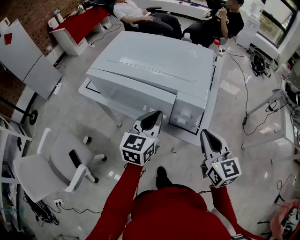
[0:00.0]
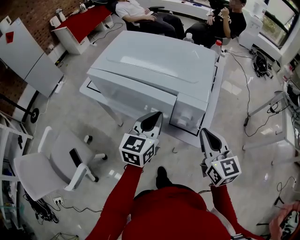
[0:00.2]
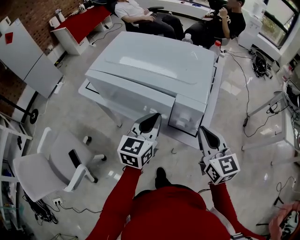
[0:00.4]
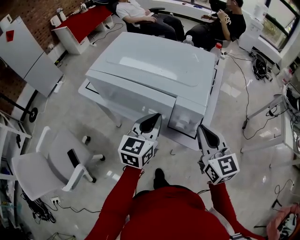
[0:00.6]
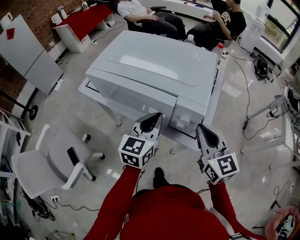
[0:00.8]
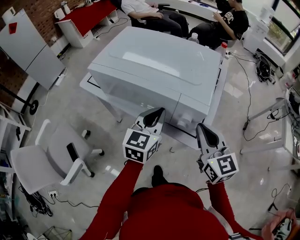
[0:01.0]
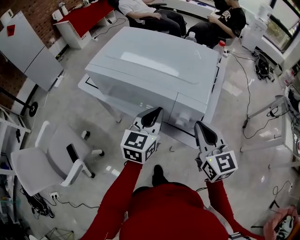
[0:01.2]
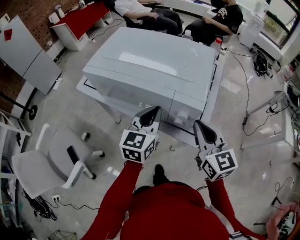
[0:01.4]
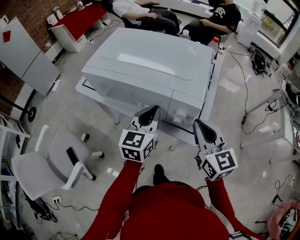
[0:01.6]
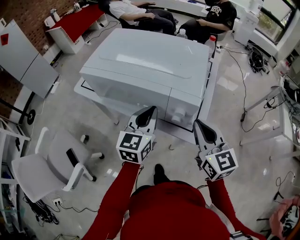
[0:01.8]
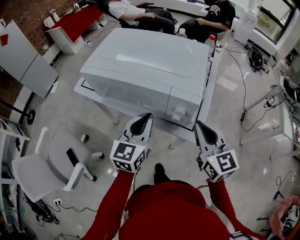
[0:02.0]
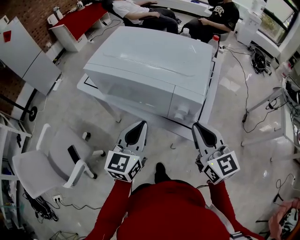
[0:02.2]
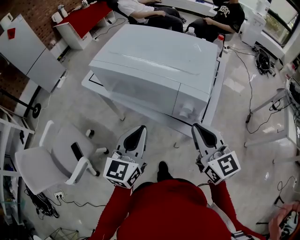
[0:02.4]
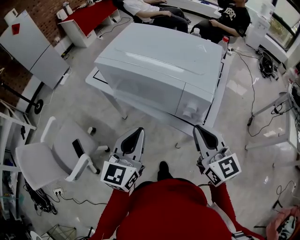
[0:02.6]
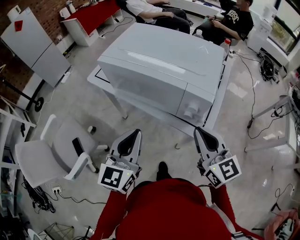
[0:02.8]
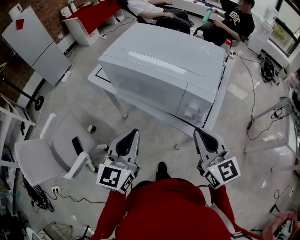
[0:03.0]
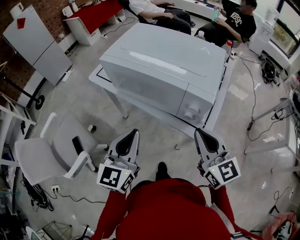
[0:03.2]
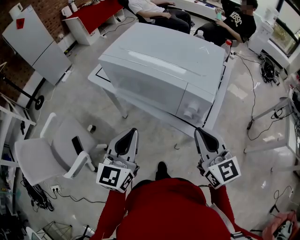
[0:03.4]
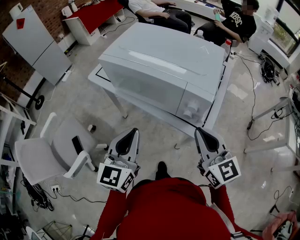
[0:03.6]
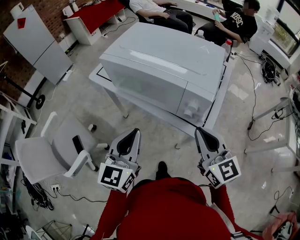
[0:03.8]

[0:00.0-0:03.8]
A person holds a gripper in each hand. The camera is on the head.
0:00.0 to 0:01.2: The grippers make only small movements.
0:01.2 to 0:02.6: The right gripper shifts about 5 cm backward, while the left gripper goes roughly 15 cm backward and to the left.
0:02.6 to 0:03.8: The grippers move only a little.

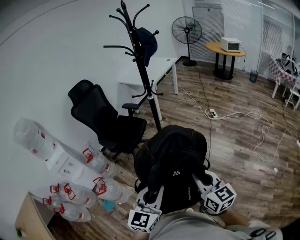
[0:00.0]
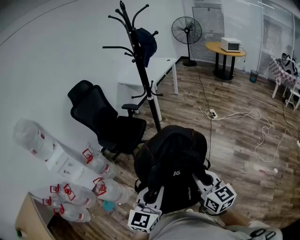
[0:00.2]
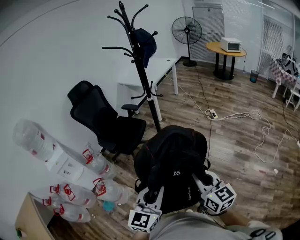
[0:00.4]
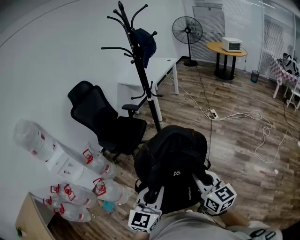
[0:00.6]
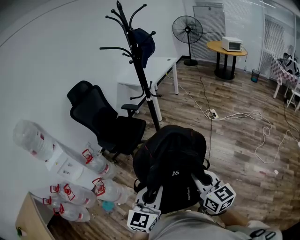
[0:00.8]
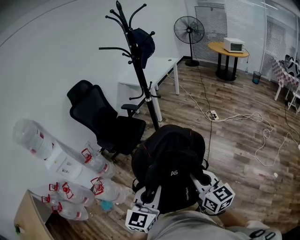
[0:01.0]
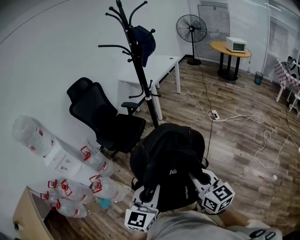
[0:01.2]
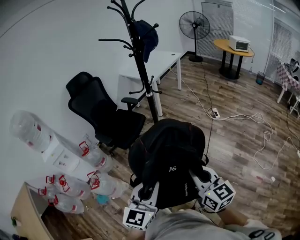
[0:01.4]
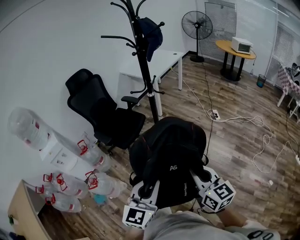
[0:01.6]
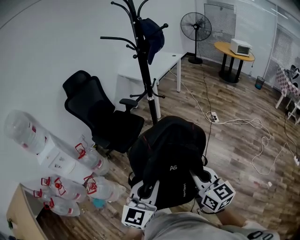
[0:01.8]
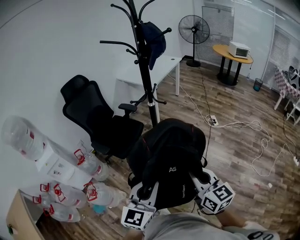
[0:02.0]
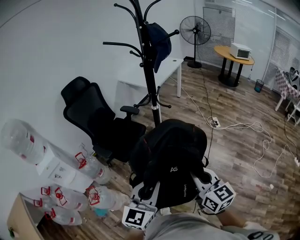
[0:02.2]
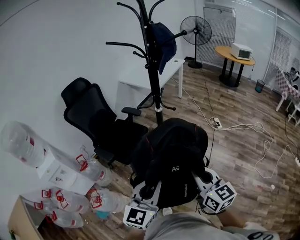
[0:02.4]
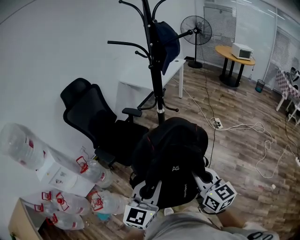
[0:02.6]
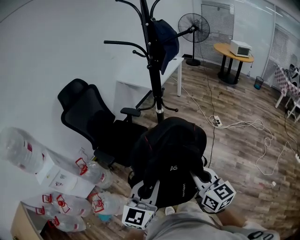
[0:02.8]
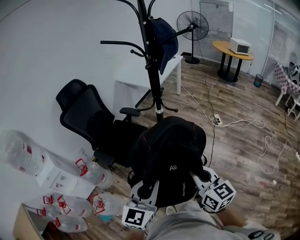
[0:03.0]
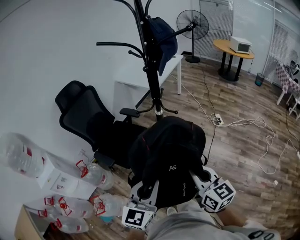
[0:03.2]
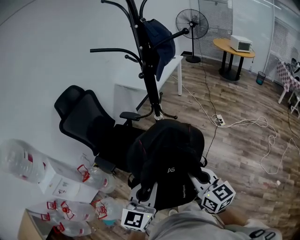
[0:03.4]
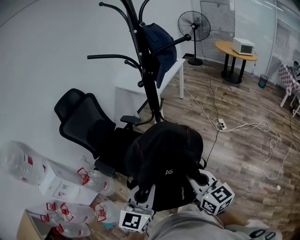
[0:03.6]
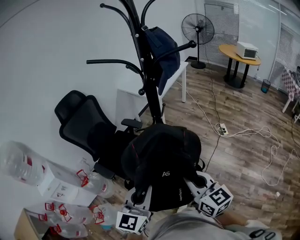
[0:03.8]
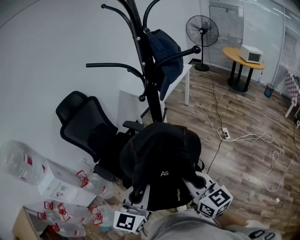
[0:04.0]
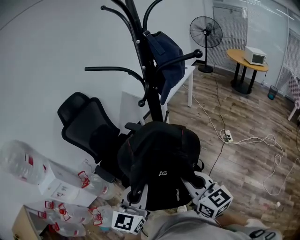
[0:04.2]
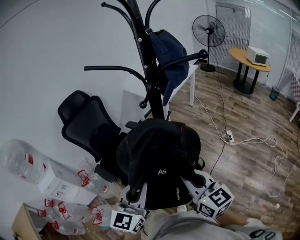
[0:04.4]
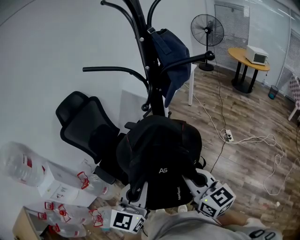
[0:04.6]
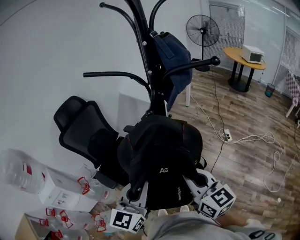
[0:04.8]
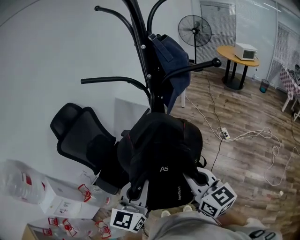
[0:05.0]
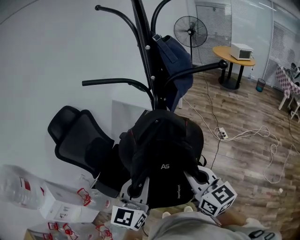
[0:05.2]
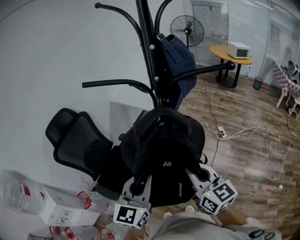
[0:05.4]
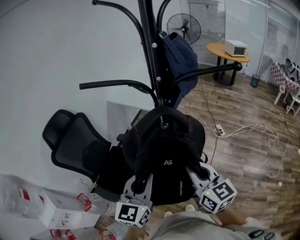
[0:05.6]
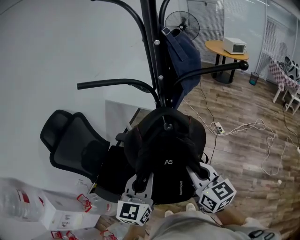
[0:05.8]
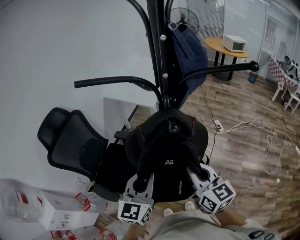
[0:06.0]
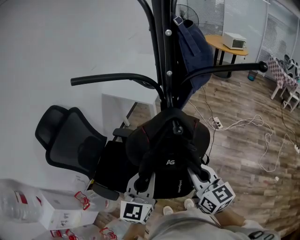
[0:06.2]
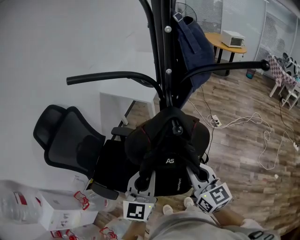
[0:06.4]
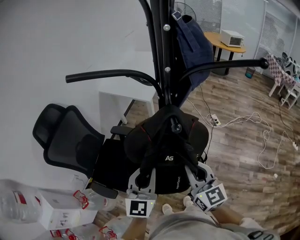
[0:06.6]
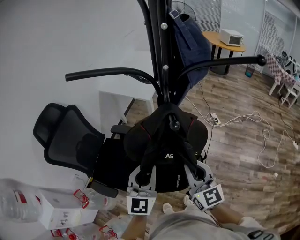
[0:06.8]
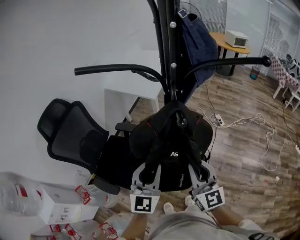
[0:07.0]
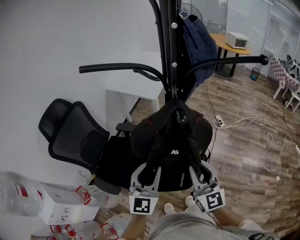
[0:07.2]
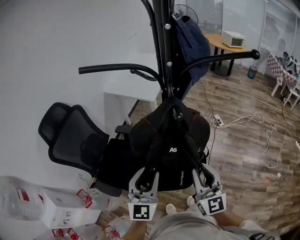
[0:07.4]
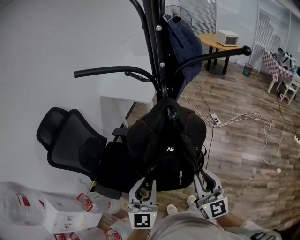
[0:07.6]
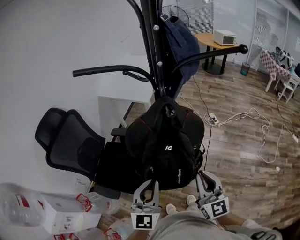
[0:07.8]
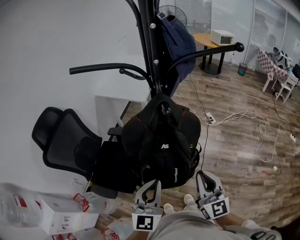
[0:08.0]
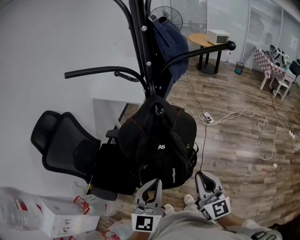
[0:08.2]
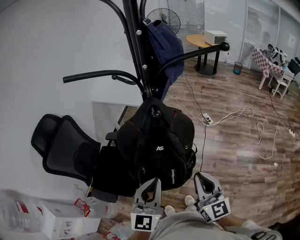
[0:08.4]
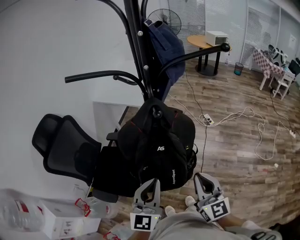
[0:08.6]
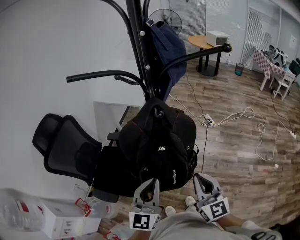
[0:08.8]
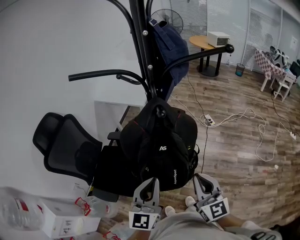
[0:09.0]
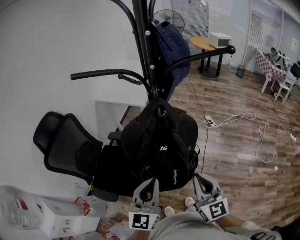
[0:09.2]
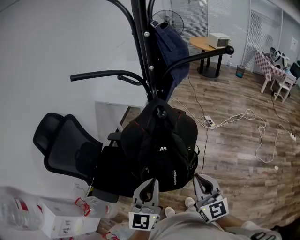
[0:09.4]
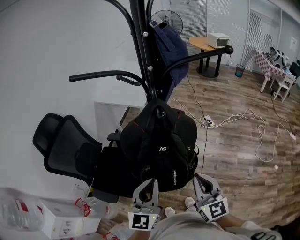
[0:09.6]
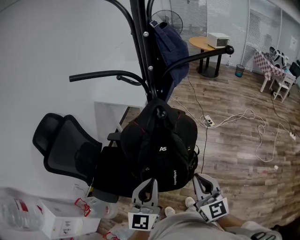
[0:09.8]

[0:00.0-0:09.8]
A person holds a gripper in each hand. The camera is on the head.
0:00.0 to 0:01.4: Both grippers travel together forward, approximately 5 cm.
0:01.4 to 0:02.8: The two grippers go some 20 cm forward and to the left.
0:02.8 to 0:04.2: Both grippers move forward, about 15 cm.
0:04.2 to 0:05.6: Both grippers move forward, roughly 15 cm.
0:05.6 to 0:07.0: Both grippers move downward, approximately 5 cm.
0:07.0 to 0:08.4: The left gripper heads backward, covering about 10 cm, while the right gripper heads backward and to the right, covering roughly 10 cm.
0:08.4 to 0:09.8: The grippers move only a little.

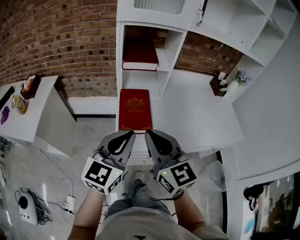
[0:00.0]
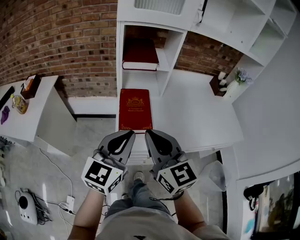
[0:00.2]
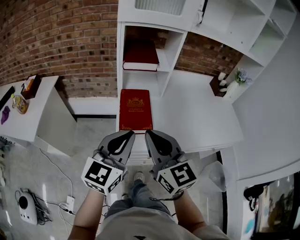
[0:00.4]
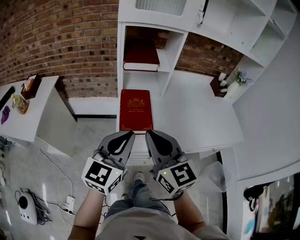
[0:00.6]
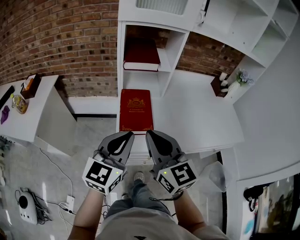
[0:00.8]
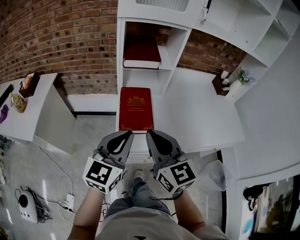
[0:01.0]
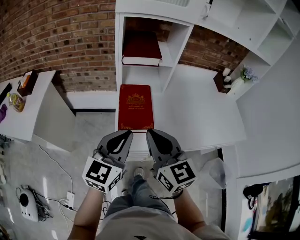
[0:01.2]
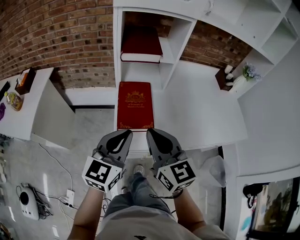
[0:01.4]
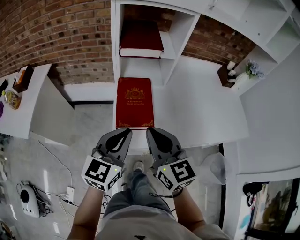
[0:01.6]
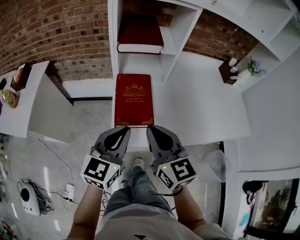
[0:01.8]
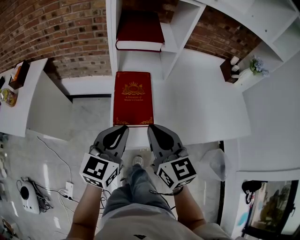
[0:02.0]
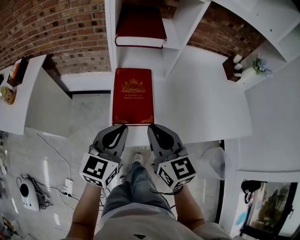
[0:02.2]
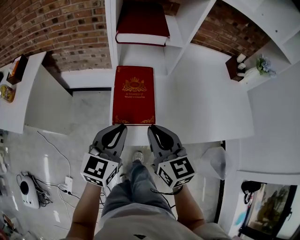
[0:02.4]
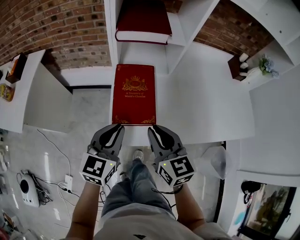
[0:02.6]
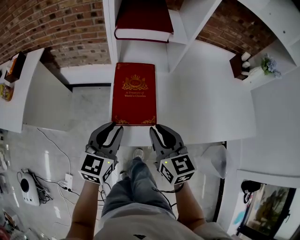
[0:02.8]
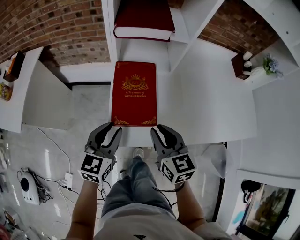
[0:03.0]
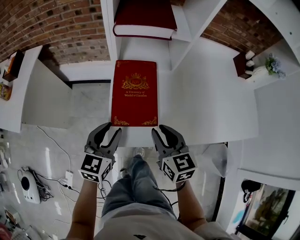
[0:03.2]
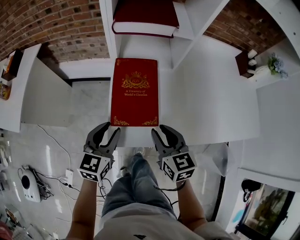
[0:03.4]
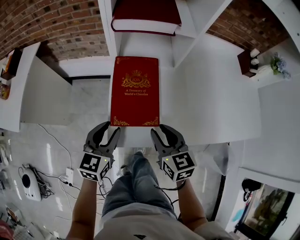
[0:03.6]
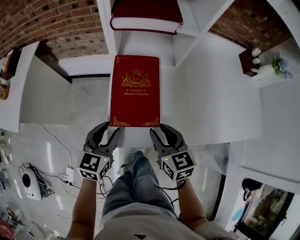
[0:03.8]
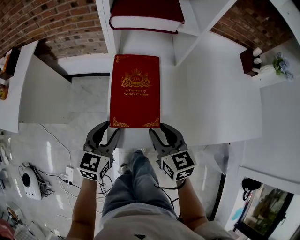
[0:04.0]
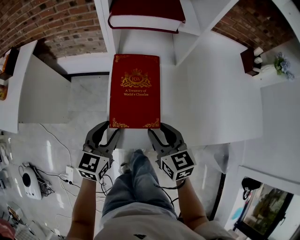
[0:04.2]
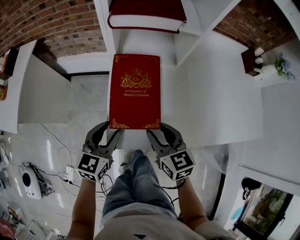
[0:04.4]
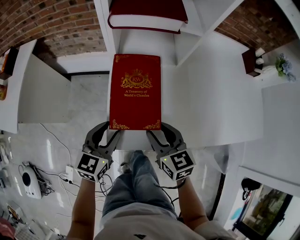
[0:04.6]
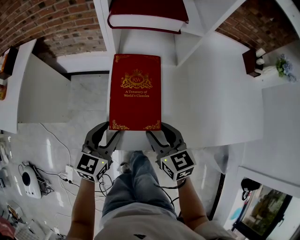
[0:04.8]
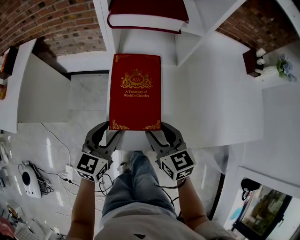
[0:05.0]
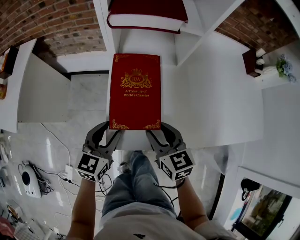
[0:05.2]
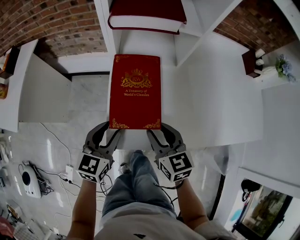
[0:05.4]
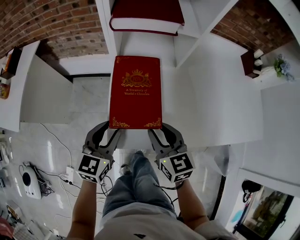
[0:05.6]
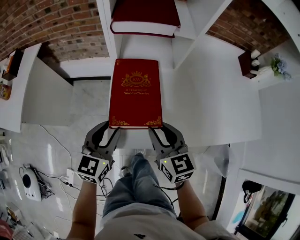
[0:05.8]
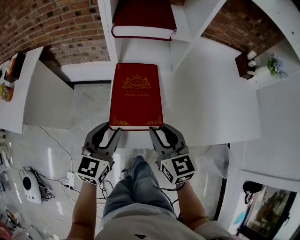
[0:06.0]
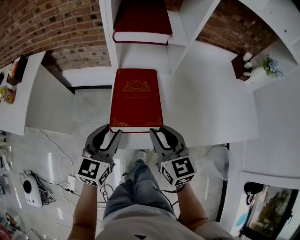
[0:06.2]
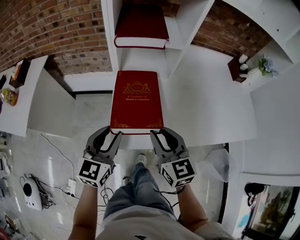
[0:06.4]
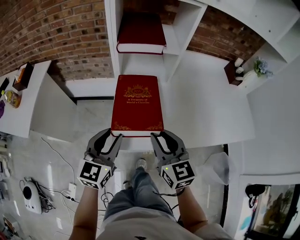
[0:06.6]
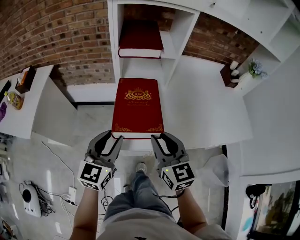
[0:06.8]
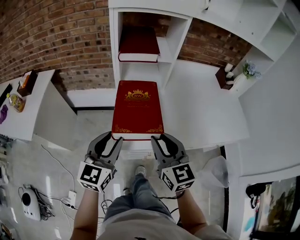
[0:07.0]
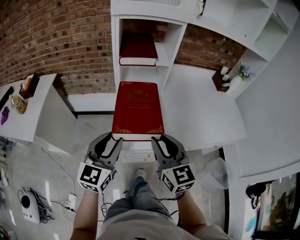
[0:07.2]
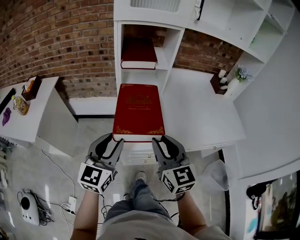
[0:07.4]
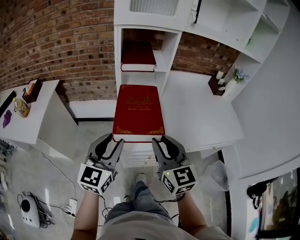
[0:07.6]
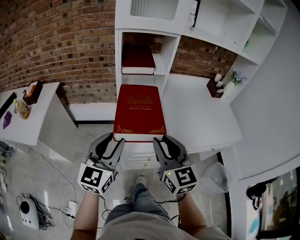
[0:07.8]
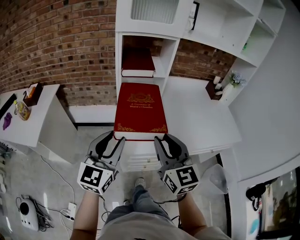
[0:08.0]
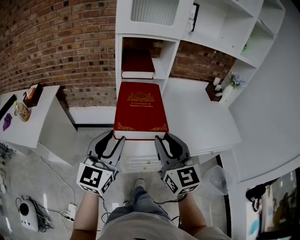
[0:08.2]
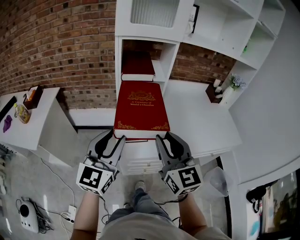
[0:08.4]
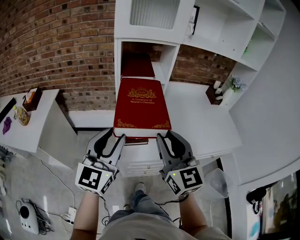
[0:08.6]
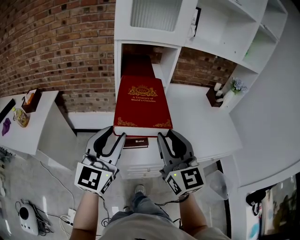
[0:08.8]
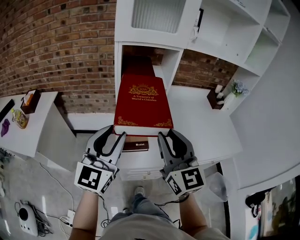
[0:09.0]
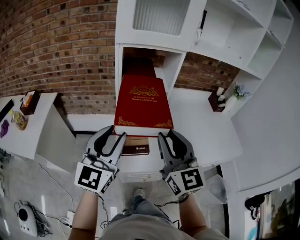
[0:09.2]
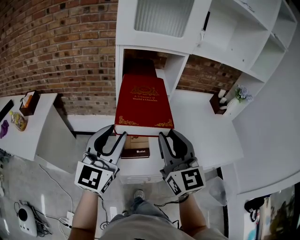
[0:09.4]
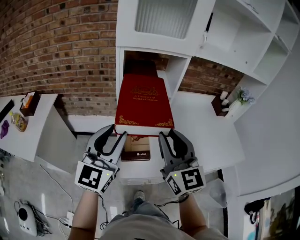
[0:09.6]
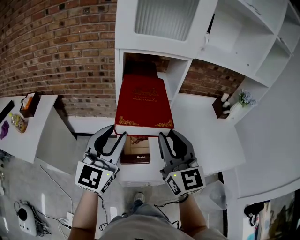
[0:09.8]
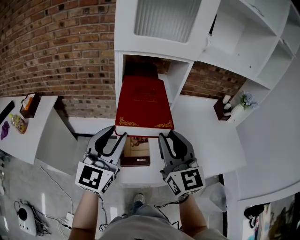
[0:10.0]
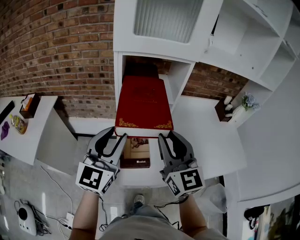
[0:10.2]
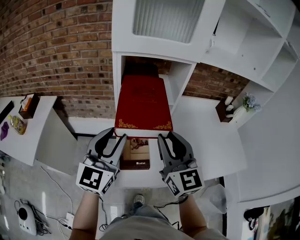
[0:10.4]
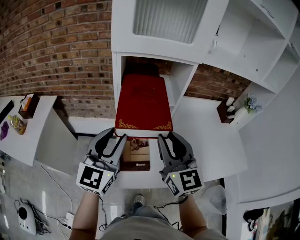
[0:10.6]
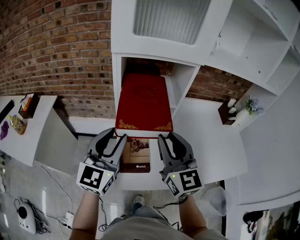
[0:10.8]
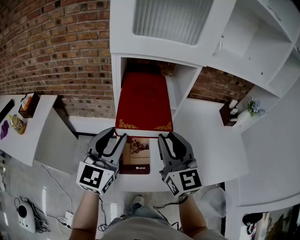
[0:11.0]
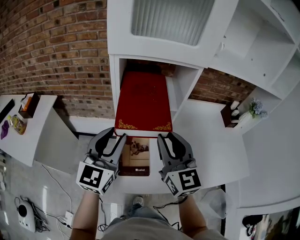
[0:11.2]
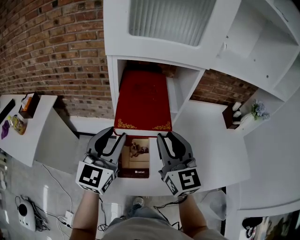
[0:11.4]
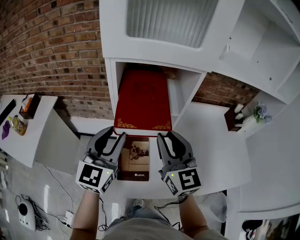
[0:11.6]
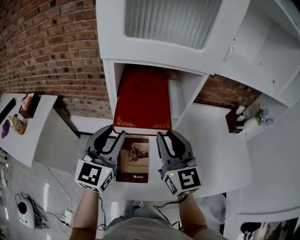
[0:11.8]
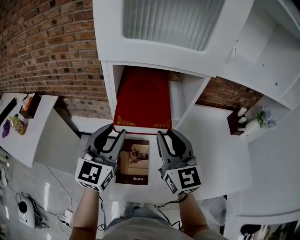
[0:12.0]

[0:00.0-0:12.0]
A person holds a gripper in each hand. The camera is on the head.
0:00.0 to 0:01.6: The right gripper is displaced downward and forward by roughly 10 cm; the left gripper moves downward, approximately 5 cm.
0:01.6 to 0:03.0: The two grippers go approximately 15 cm downward. The left gripper opens.
0:03.0 to 0:04.4: Both grippers move downward, roughly 5 cm.
0:04.4 to 0:06.0: The grippers both shift upward by some 5 cm.
0:06.0 to 0:07.6: The two grippers go approximately 20 cm upward and backward.
0:07.6 to 0:09.0: The two grippers go approximately 10 cm upward and forward.
0:09.0 to 0:10.4: The grippers both shift forward by about 10 cm.
0:10.4 to 0:12.0: Both grippers travel together forward, approximately 10 cm.
